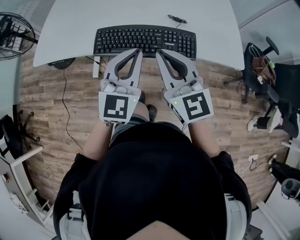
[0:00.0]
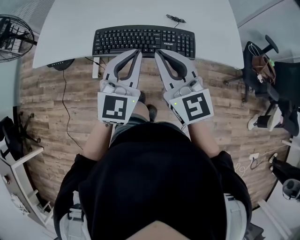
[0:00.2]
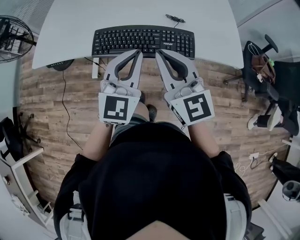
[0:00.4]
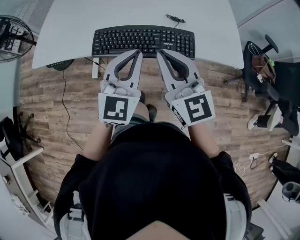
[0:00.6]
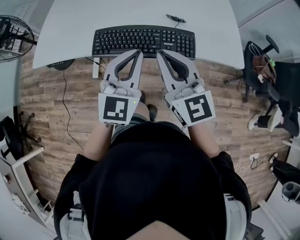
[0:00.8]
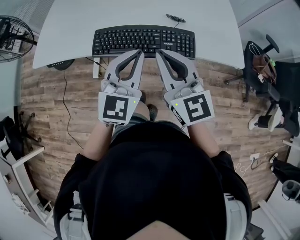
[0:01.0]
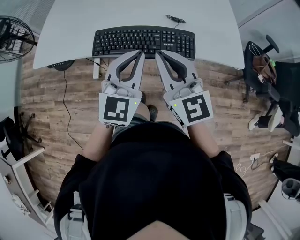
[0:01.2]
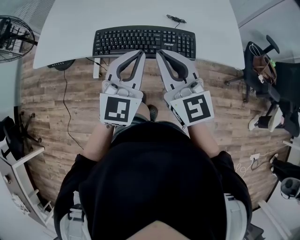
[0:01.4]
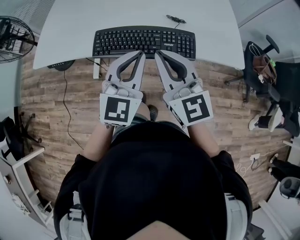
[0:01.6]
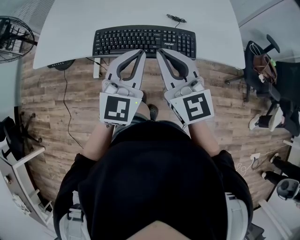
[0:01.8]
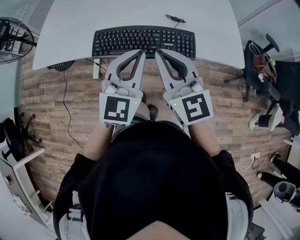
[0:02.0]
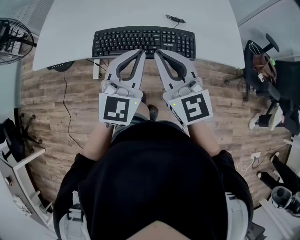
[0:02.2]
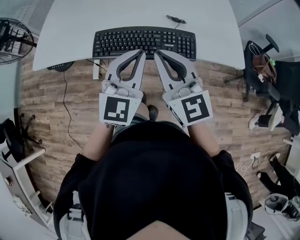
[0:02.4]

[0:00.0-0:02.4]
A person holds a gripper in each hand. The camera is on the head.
0:00.0 to 0:01.2: The grippers make only small movements.
0:01.2 to 0:02.4: Neither gripper changes place.

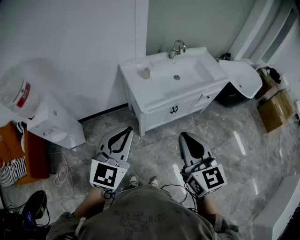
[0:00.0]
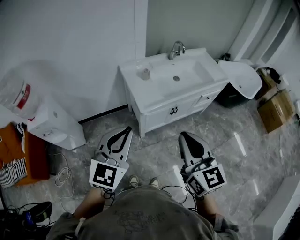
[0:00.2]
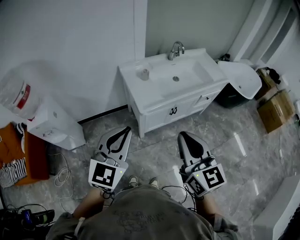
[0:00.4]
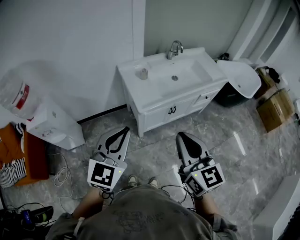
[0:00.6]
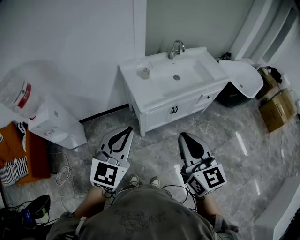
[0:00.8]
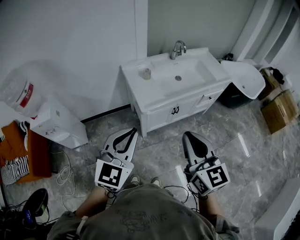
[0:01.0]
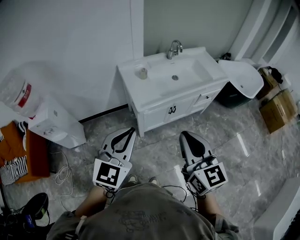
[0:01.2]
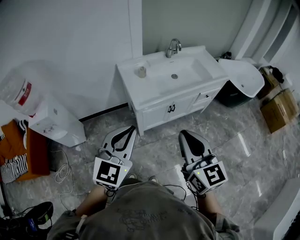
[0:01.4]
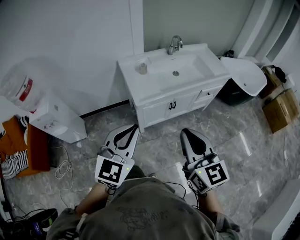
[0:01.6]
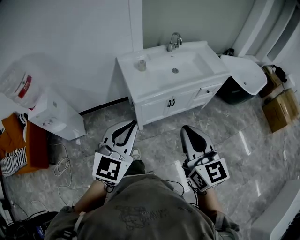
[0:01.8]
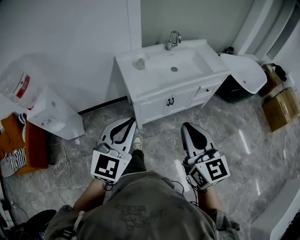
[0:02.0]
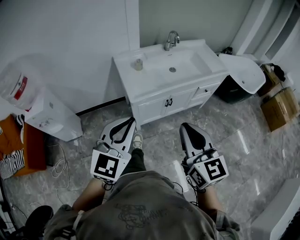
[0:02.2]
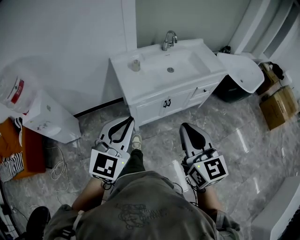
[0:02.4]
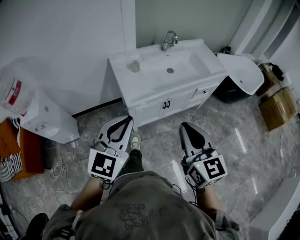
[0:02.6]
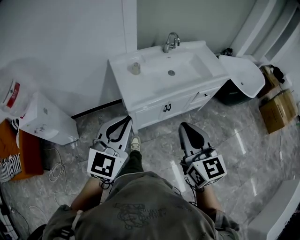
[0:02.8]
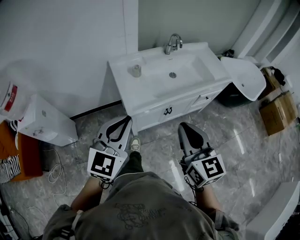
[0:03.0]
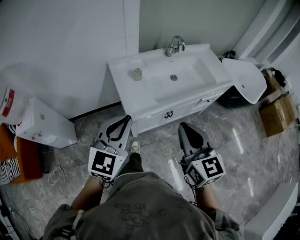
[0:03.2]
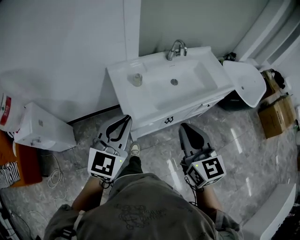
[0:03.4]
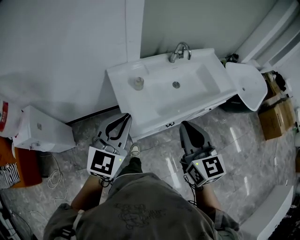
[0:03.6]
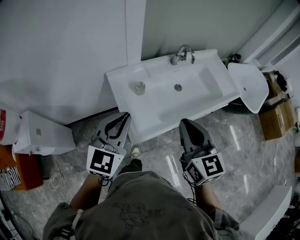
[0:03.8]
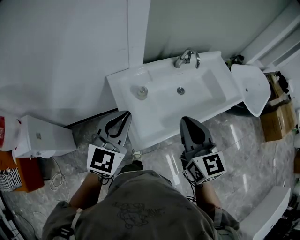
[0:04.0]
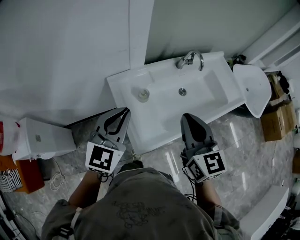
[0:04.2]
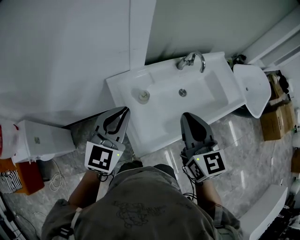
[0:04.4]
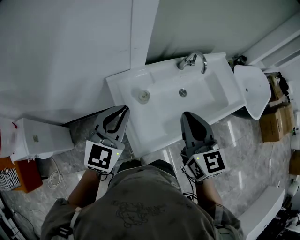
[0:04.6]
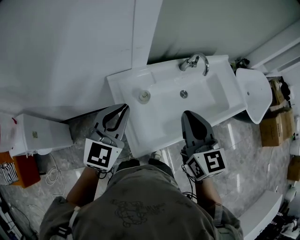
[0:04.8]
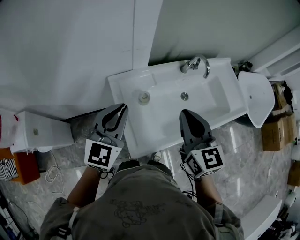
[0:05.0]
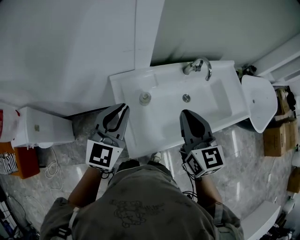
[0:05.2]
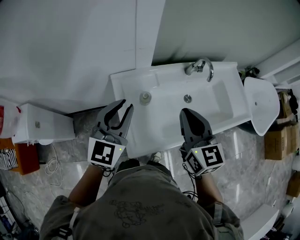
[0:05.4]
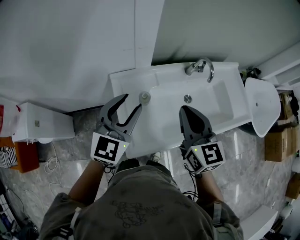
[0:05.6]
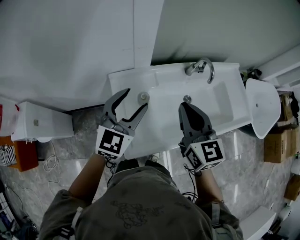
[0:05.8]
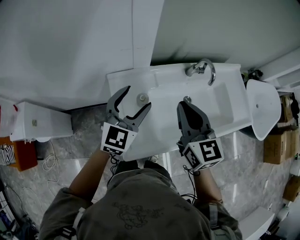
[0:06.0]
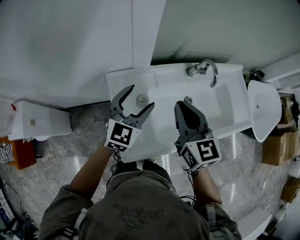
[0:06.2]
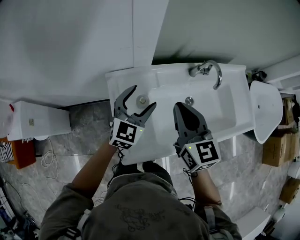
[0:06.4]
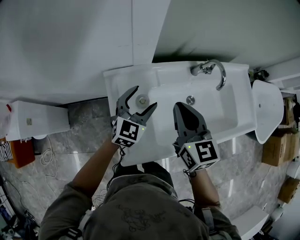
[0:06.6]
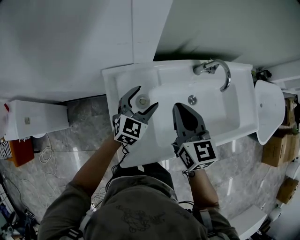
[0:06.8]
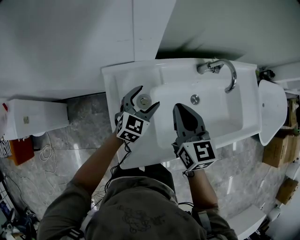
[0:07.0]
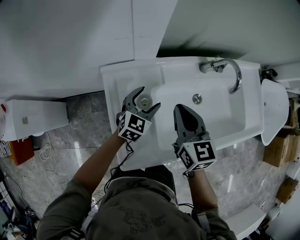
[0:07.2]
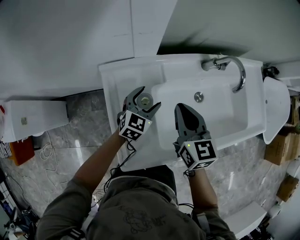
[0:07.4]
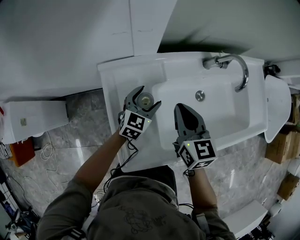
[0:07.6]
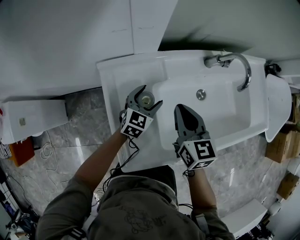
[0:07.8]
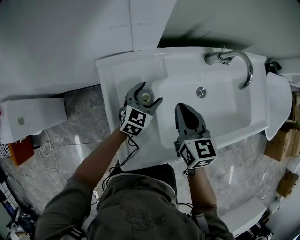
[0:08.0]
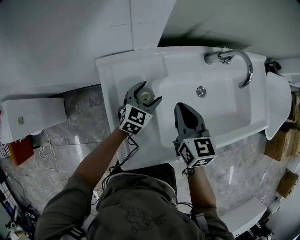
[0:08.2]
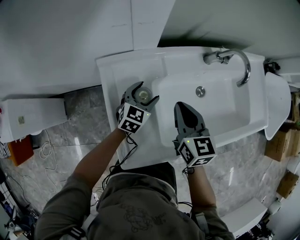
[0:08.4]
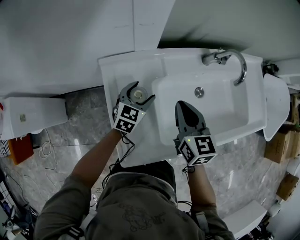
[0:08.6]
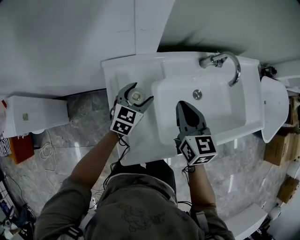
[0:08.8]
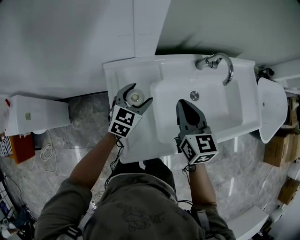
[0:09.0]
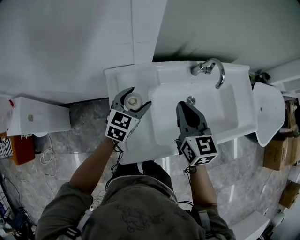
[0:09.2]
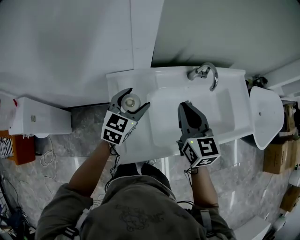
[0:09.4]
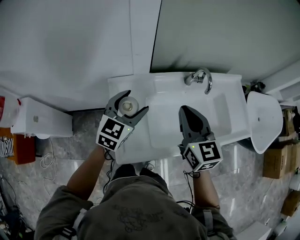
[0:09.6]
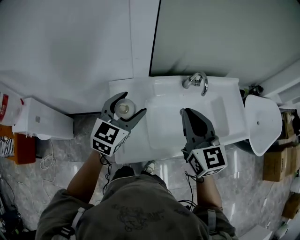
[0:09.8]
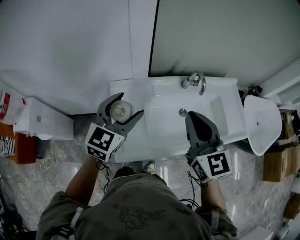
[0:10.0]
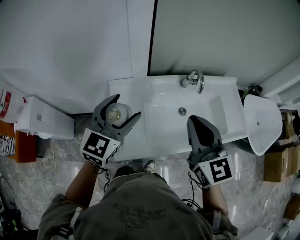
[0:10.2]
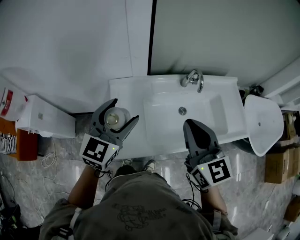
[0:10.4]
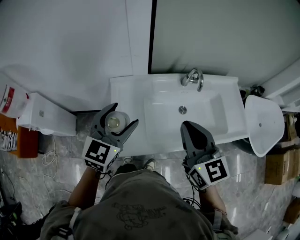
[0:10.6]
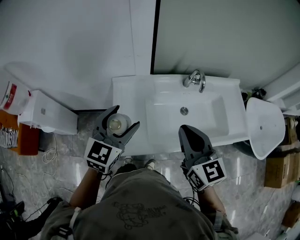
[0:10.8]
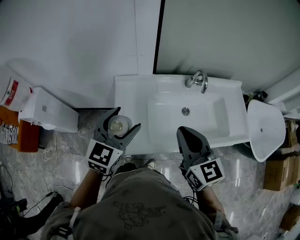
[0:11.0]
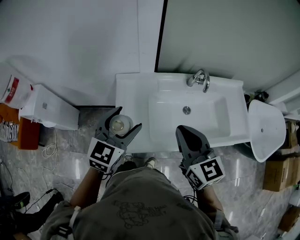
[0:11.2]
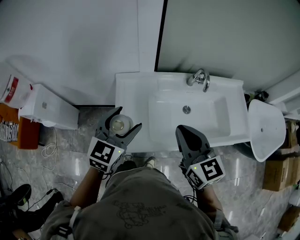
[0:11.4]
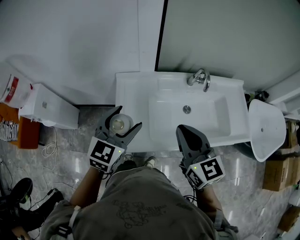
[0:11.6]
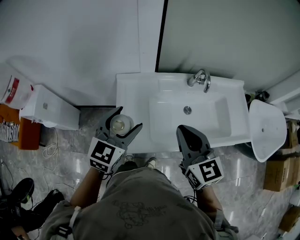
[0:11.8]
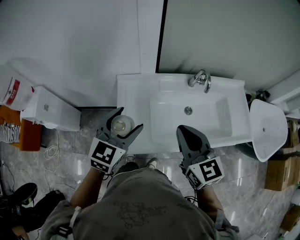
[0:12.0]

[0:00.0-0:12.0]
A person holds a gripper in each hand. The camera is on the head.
0:00.0 to 0:01.6: Both grippers move to the right, some 10 cm.
0:01.6 to 0:03.0: Both grippers move forward, approximately 15 cm.
0:03.0 to 0:04.4: The grippers both shift forward by roughly 30 cm.
0:04.4 to 0:06.0: The right gripper is displaced forward by approximately 10 cm. Meanwhile the left gripper goes some 15 cm forward, to the right and downward, and opens up.
0:06.0 to 0:07.6: Both grippers move downward, some 25 cm. The left gripper turns by some 20 degrees.
0:07.6 to 0:09.0: The two grippers go about 5 cm upward.
0:09.0 to 0:10.4: The grippers both shift upward and backward by approximately 25 cm. The right gripper changes its angle by roughly 20 degrees.
0:10.4 to 0:12.0: The right gripper ends up about 5 cm from where it was; the left gripper ends up some 5 cm from where it was.

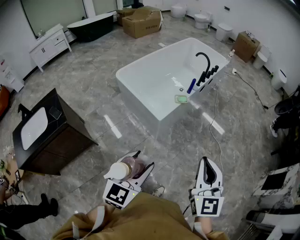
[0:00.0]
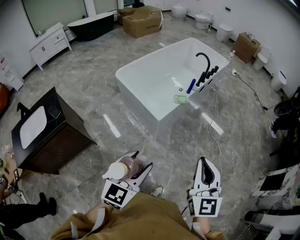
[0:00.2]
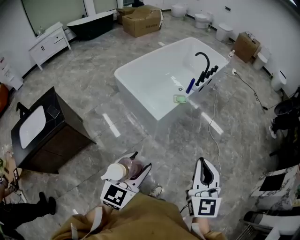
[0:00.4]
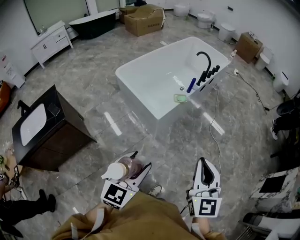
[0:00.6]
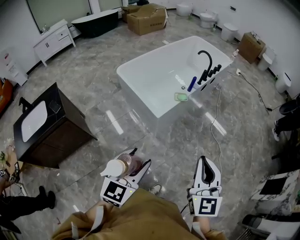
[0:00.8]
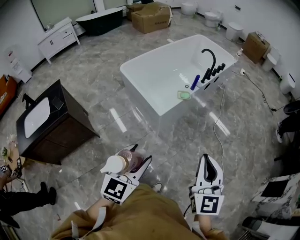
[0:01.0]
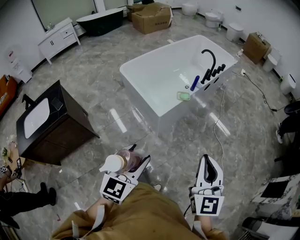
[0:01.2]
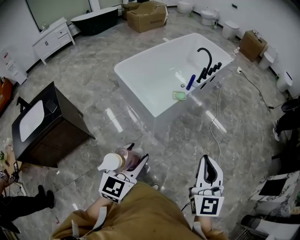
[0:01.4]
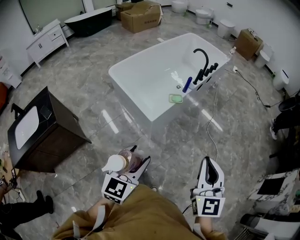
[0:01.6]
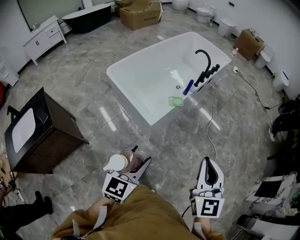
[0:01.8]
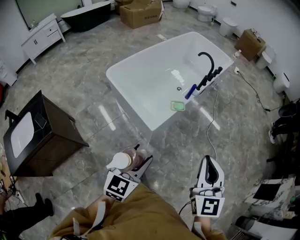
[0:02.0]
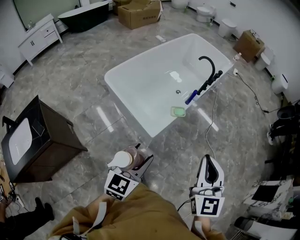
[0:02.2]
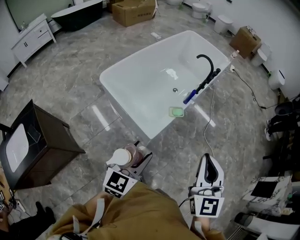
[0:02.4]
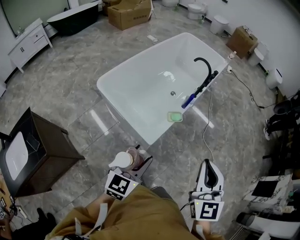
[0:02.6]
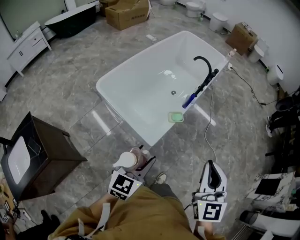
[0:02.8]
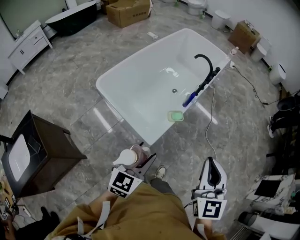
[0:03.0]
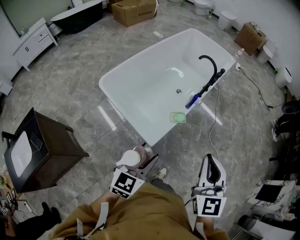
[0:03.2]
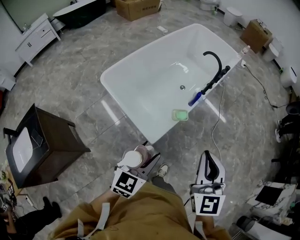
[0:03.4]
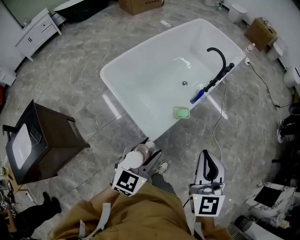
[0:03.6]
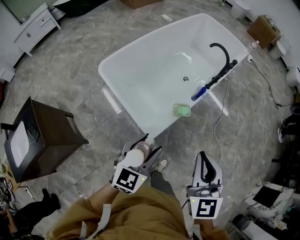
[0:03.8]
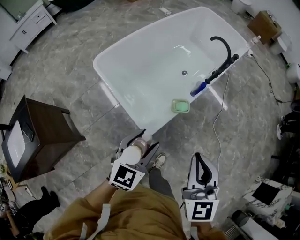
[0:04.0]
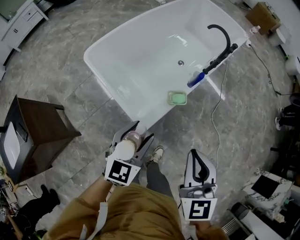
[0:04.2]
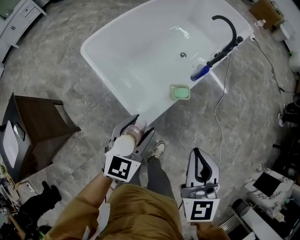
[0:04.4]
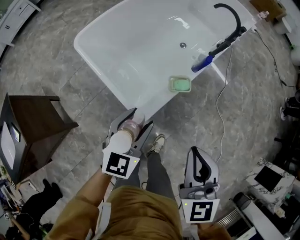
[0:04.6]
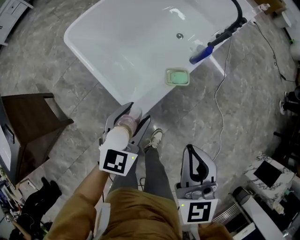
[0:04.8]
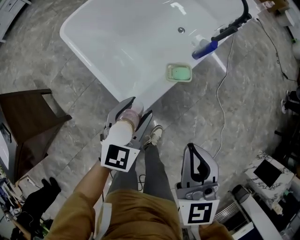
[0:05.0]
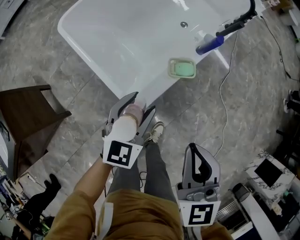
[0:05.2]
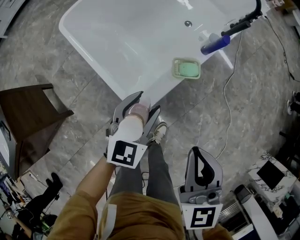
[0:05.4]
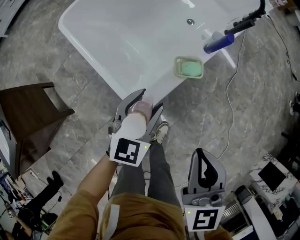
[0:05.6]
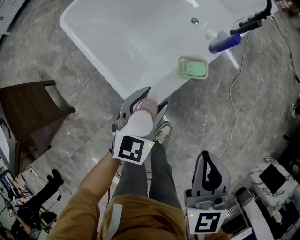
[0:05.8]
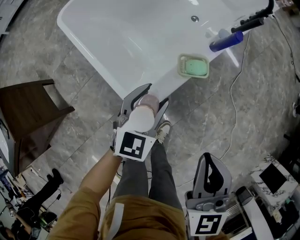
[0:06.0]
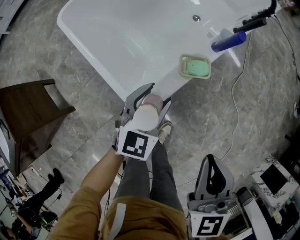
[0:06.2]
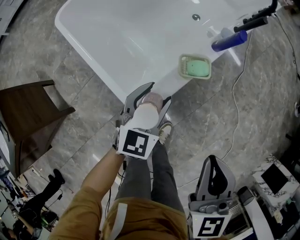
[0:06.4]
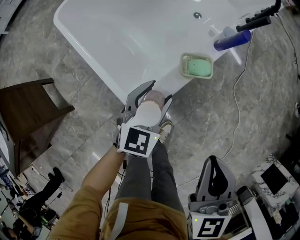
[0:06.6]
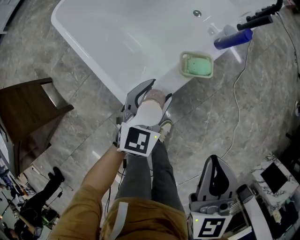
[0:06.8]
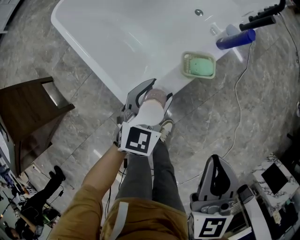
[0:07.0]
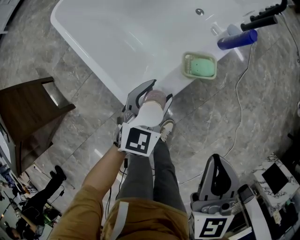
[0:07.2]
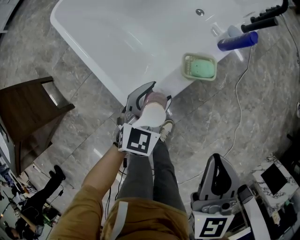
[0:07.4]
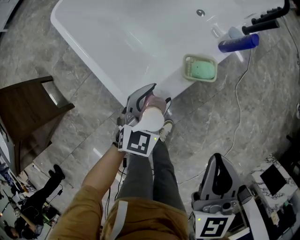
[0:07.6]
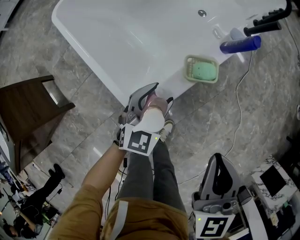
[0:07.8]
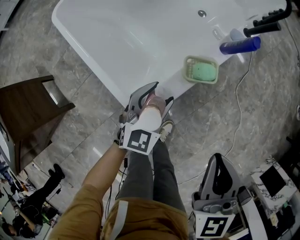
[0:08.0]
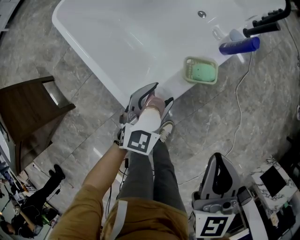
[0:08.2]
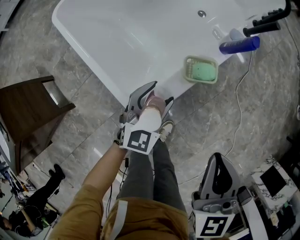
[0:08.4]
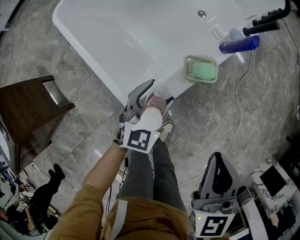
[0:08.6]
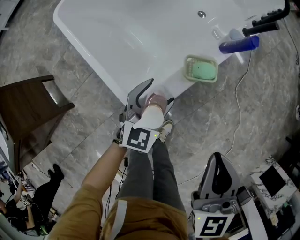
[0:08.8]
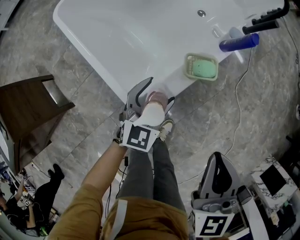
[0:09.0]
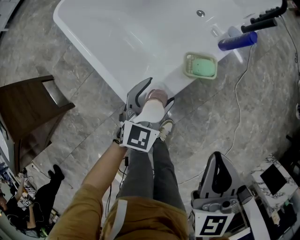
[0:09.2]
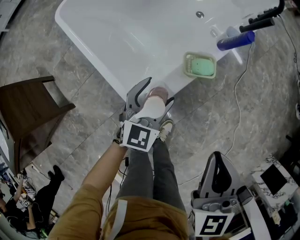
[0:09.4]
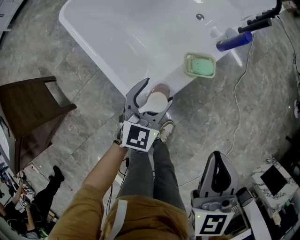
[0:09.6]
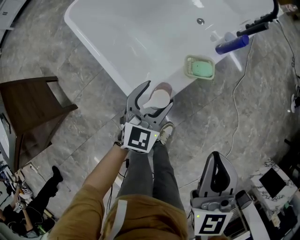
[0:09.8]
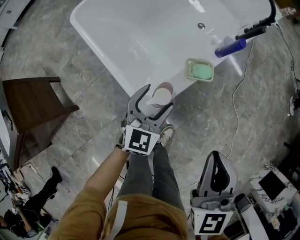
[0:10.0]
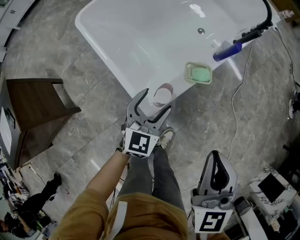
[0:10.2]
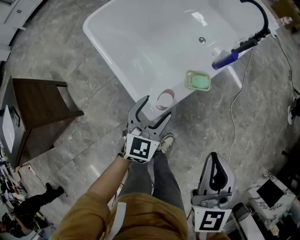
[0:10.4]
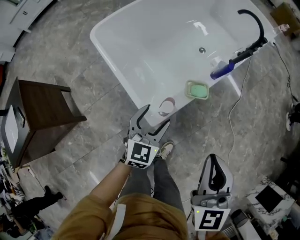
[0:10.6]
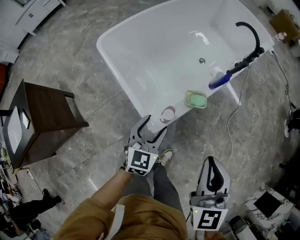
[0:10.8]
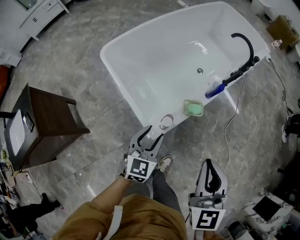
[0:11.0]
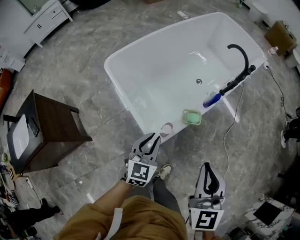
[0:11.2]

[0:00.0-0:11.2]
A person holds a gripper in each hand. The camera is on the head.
0:00.0 to 0:01.6: The left gripper travels forward by some 10 cm; the right gripper moves forward and to the right, about 10 cm.
0:01.6 to 0:03.2: The left gripper is displaced forward by some 25 cm. The right gripper is displaced forward and to the left by approximately 25 cm.
0:03.2 to 0:04.8: The grippers both shift downward and forward by some 20 cm.
0:04.8 to 0:06.4: The left gripper goes roughly 15 cm downward and forward, while the right gripper is displaced downward by approximately 10 cm.
0:06.4 to 0:08.0: The left gripper is displaced downward by approximately 5 cm.
0:08.0 to 0:09.6: The grippers move only a little.
0:09.6 to 0:11.2: The grippers both shift upward by about 20 cm. The left gripper closes up.
